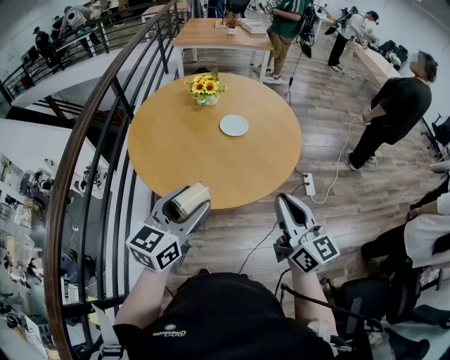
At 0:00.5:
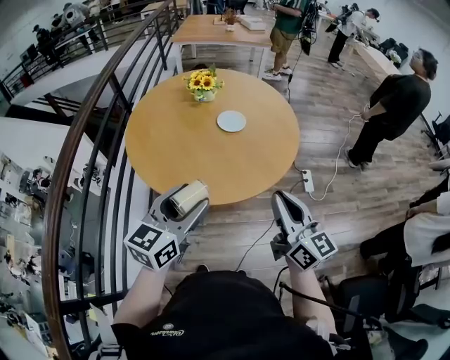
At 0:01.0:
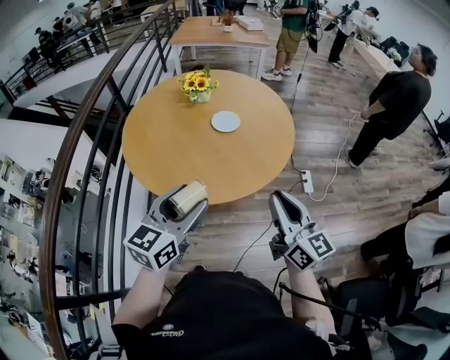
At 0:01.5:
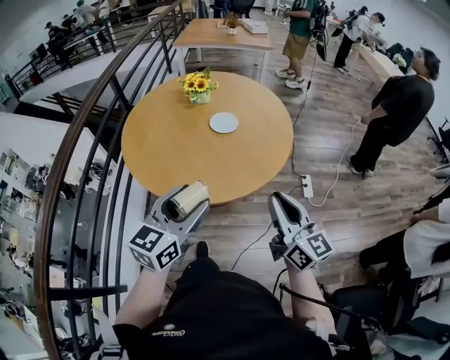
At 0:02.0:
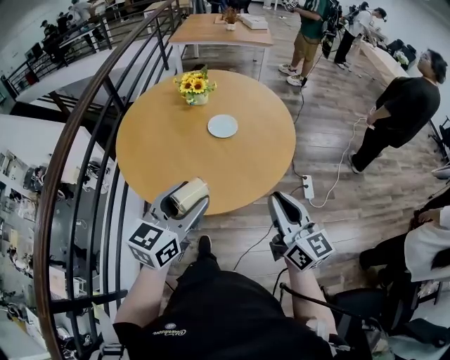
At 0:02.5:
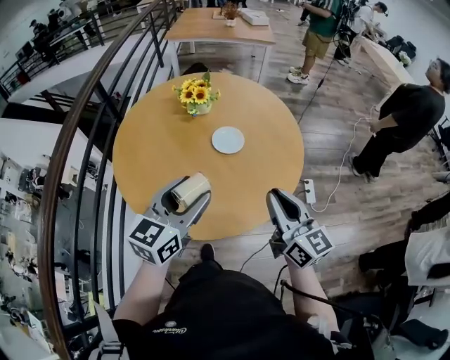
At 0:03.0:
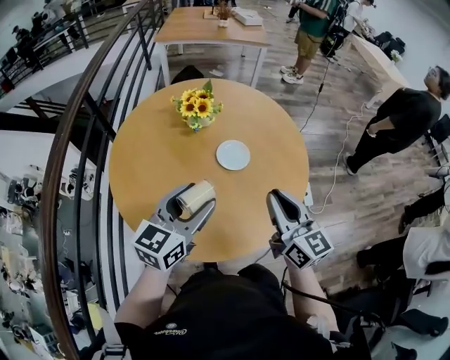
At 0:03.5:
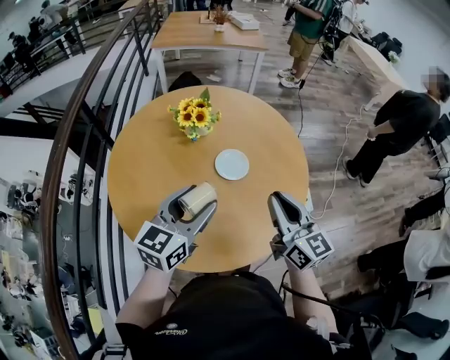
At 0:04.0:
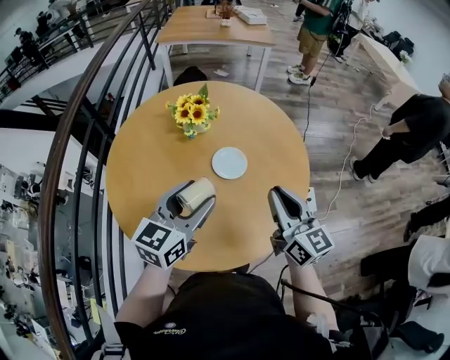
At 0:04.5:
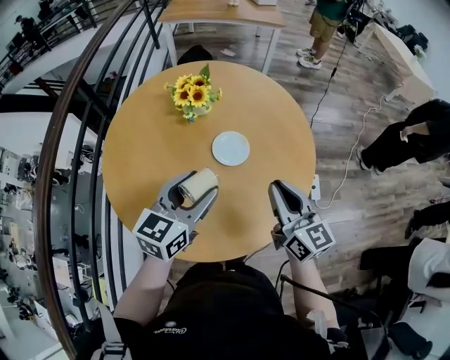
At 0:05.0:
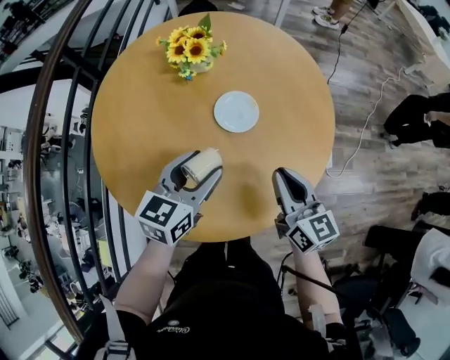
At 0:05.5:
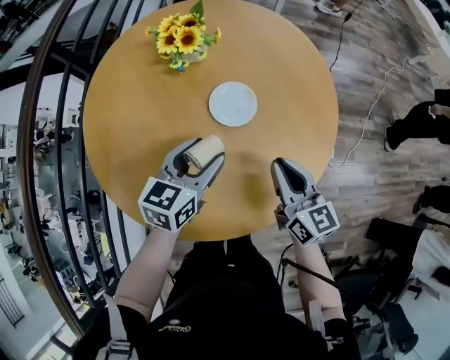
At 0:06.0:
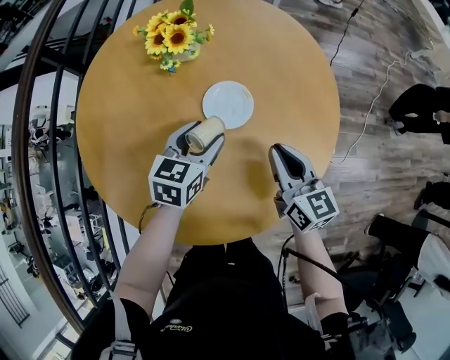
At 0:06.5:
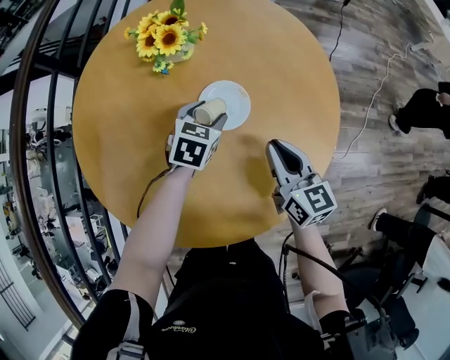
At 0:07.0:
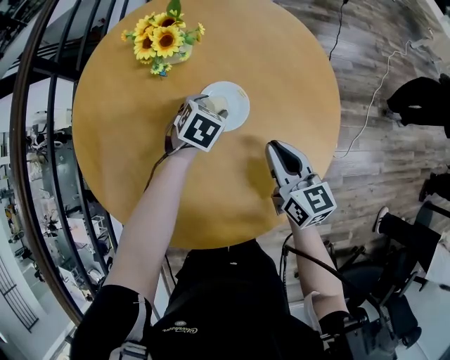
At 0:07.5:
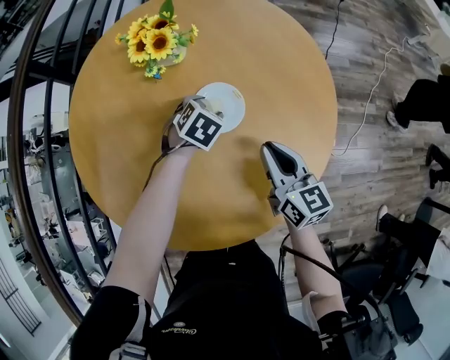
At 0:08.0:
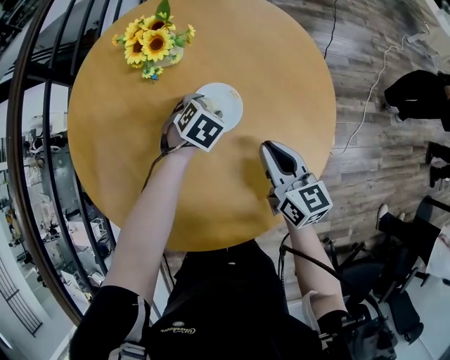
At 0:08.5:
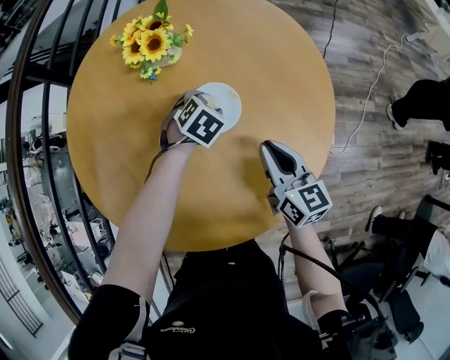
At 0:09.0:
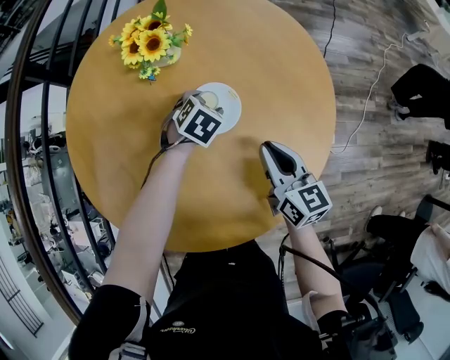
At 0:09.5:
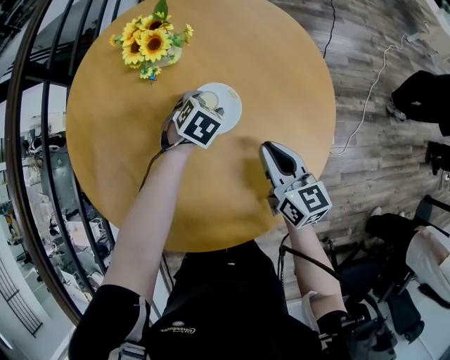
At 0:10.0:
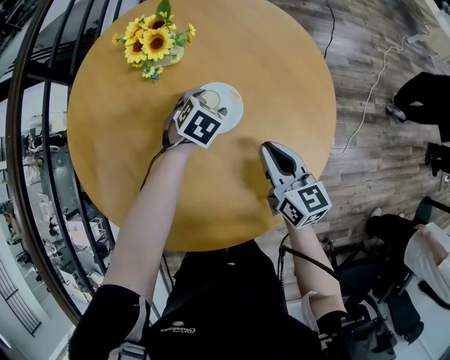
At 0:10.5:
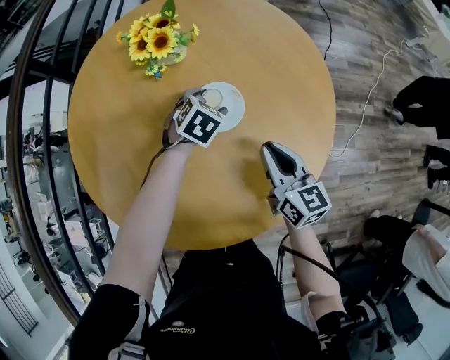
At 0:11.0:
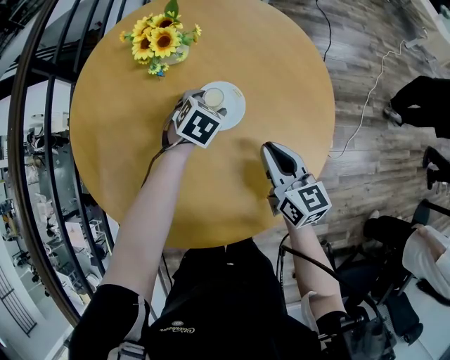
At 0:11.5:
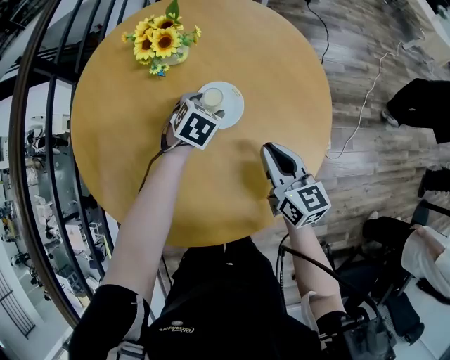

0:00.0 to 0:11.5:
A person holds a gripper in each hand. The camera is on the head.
0:00.0 to 0:02.0: The left gripper heads to the right, covering about 10 cm. The right gripper heads to the right and forward, covering approximately 10 cm.
0:02.0 to 0:04.0: Both grippers travel together forward, about 25 cm.
0:04.0 to 0:06.0: Both grippers move downward and forward, some 20 cm. The left gripper turns by approximately 20 degrees.
0:06.0 to 0:07.5: The left gripper is displaced downward and forward by roughly 15 cm, and tips its fingers downward by approximately 30 degrees.
0:07.5 to 0:11.5: The grippers move only a little.

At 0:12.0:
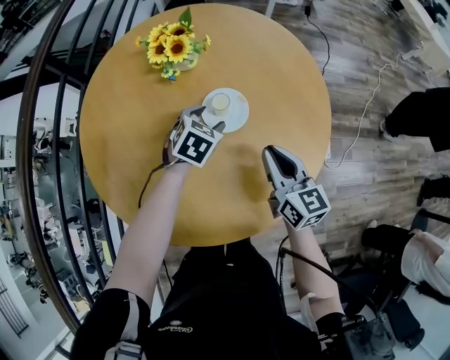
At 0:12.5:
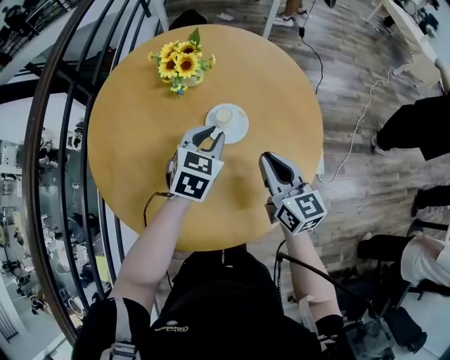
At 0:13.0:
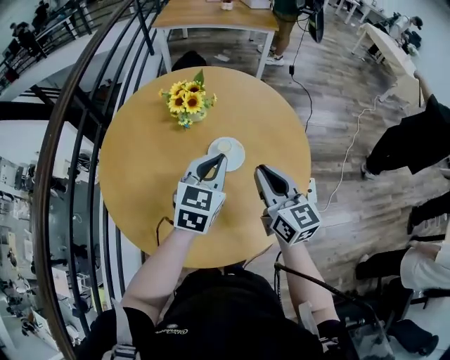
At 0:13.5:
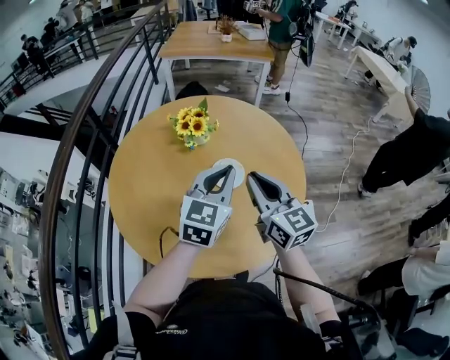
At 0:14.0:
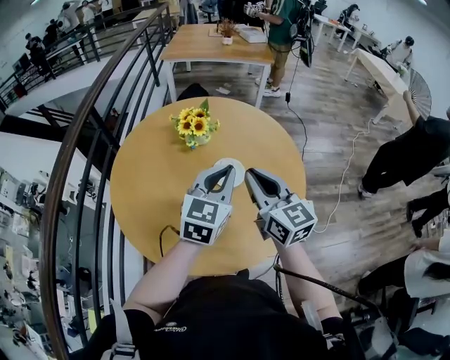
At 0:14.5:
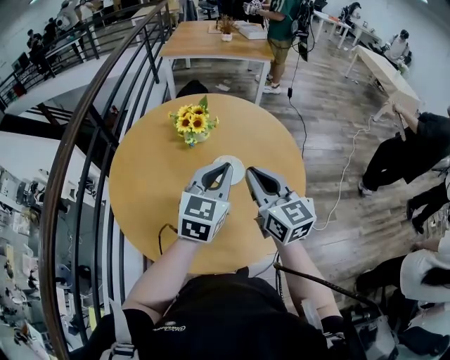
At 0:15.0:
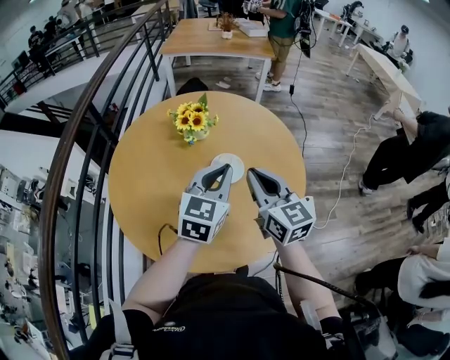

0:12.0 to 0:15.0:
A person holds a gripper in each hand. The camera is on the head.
0:12.0 to 0:13.5: The right gripper heads upward and to the left, covering roughly 20 cm. Meanwhile the left gripper moves upward and backward, about 30 cm, tilts its fingers about 40 degrees upward, and closes its fingers.
0:13.5 to 0:15.0: The grippers make only small movements.

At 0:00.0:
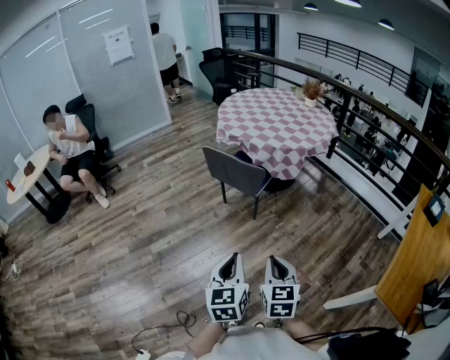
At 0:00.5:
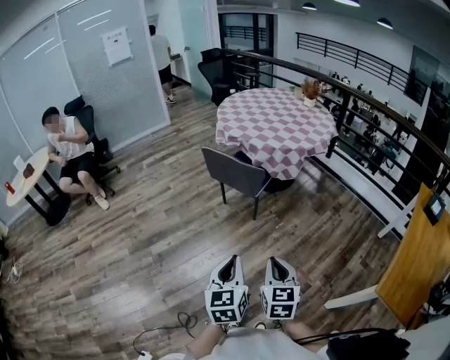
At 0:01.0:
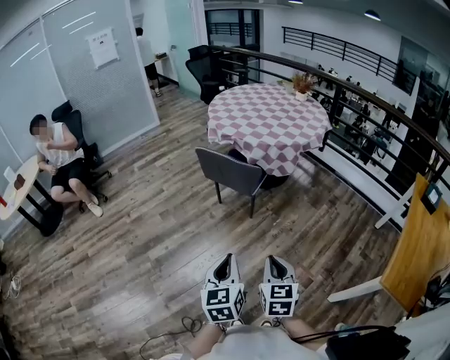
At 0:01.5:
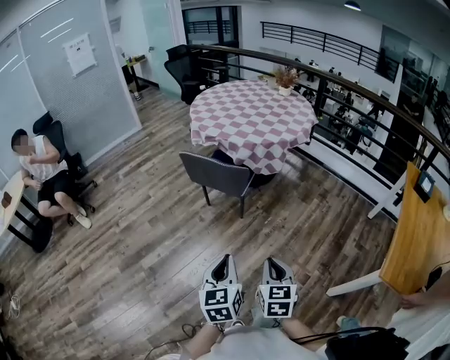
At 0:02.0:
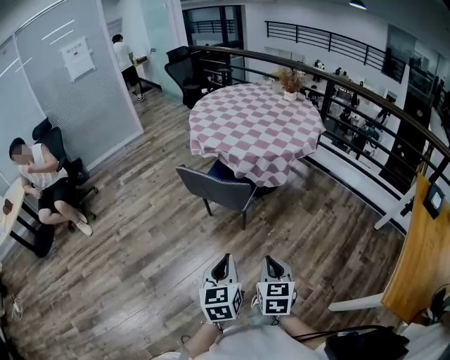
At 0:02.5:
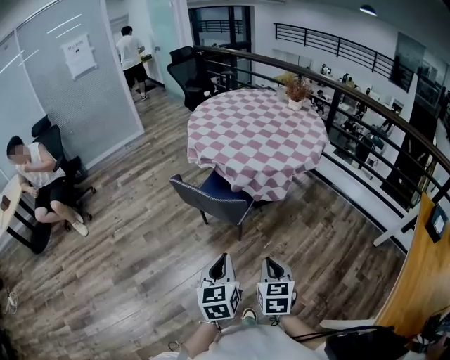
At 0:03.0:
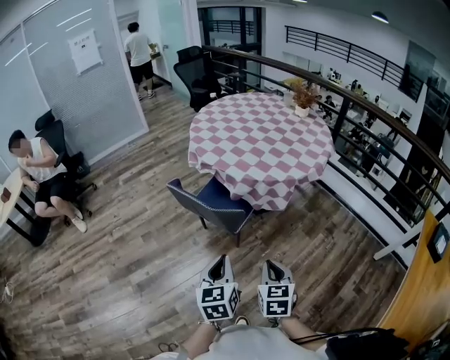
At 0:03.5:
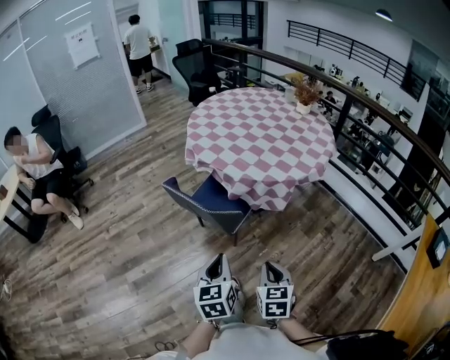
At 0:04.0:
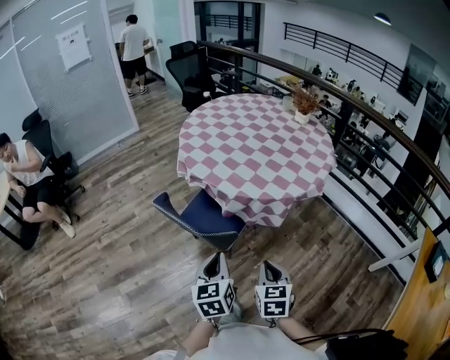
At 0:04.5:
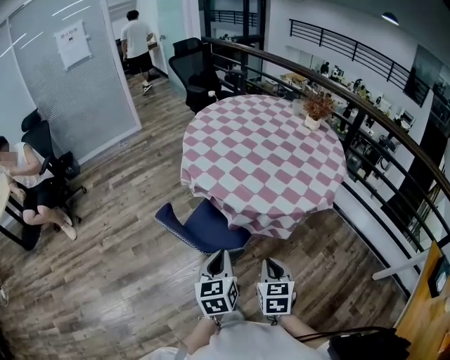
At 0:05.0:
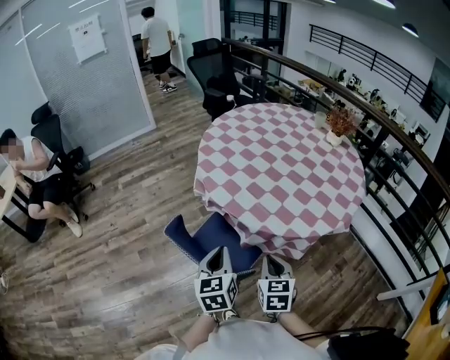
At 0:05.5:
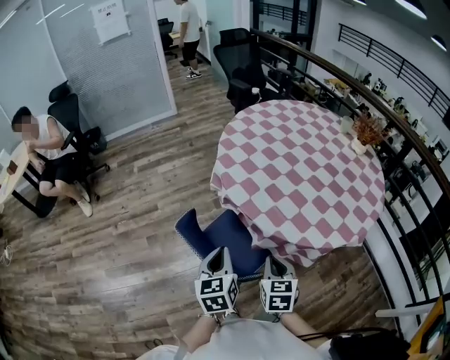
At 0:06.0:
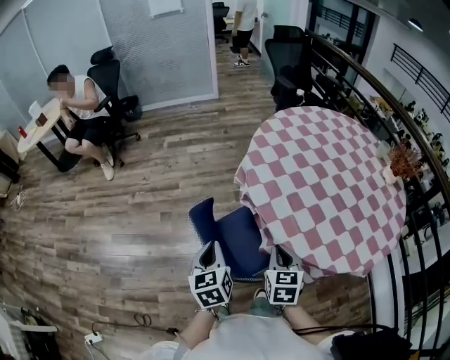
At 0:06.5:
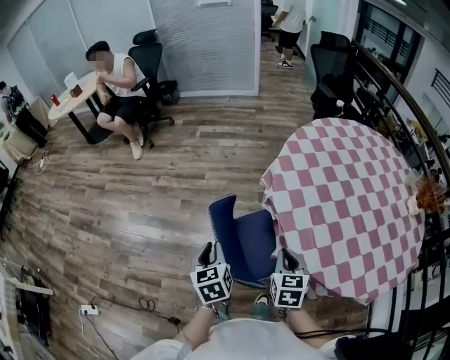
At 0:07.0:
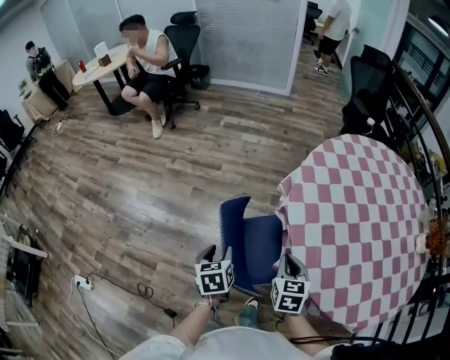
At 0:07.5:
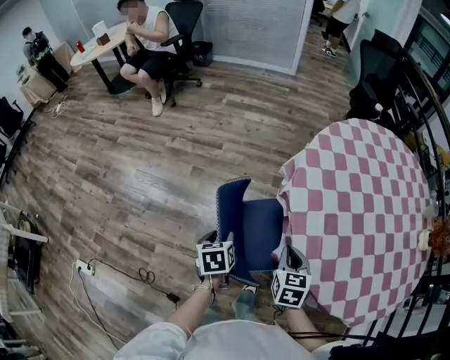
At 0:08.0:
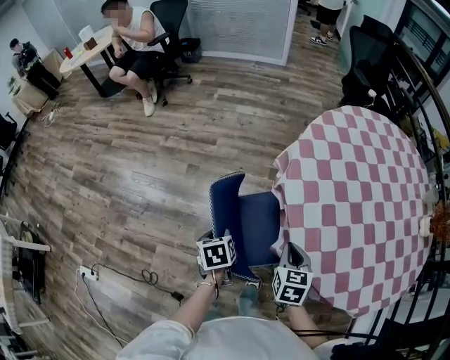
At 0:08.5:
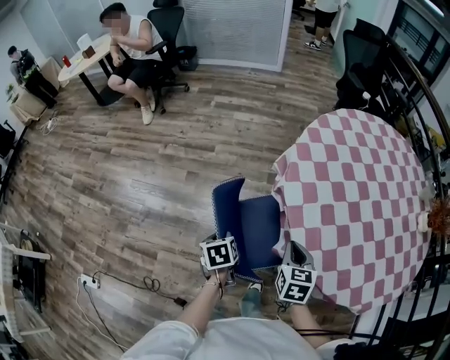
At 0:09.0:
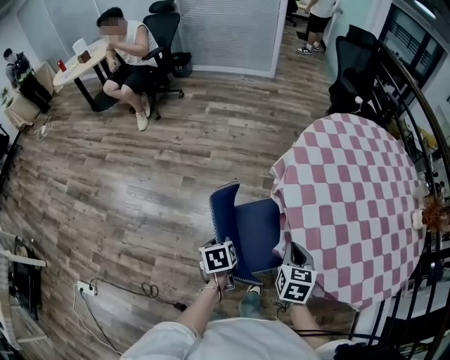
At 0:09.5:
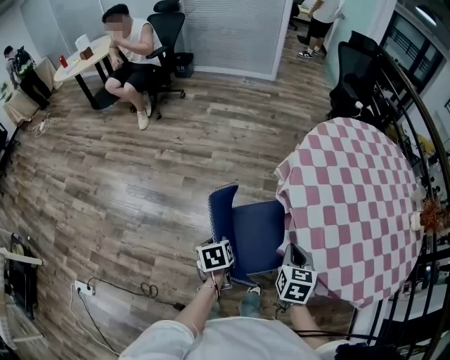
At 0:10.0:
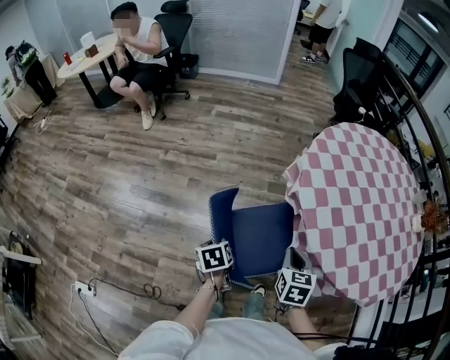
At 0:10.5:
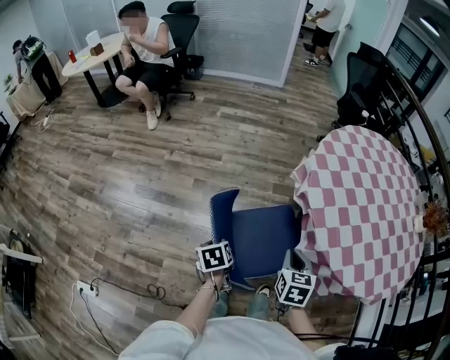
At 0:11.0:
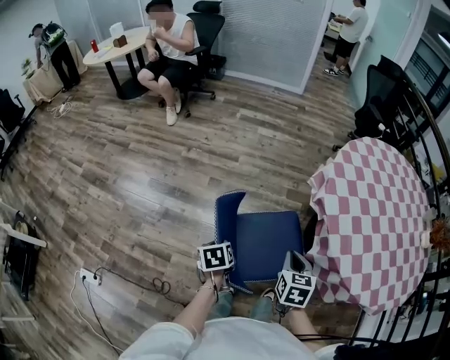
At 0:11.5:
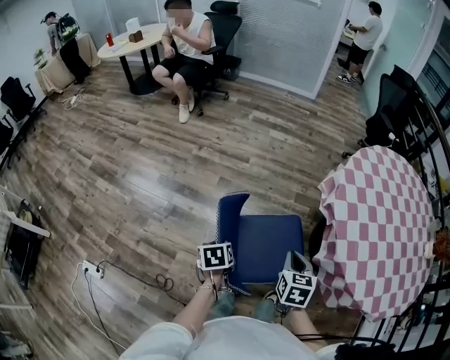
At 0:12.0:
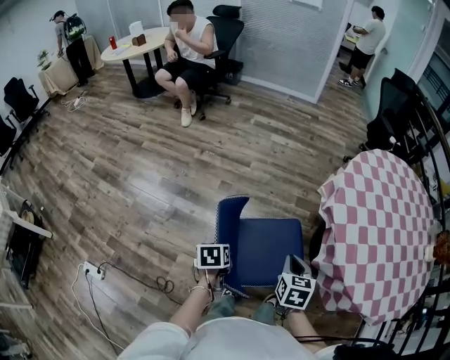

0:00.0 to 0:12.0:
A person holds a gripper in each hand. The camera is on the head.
0:00.0 to 0:02.0: The grippers both shift forward by roughly 15 cm.
0:02.0 to 0:04.0: Both grippers move forward, some 30 cm.
0:04.0 to 0:06.0: The right gripper changes place by approximately 30 cm, and rotates roughly 20 degrees, while the left gripper ends up some 25 cm from where it was, and changes its angle by some 30 degrees.
0:06.0 to 0:08.0: The right gripper heads downward and forward, covering approximately 10 cm, while the left gripper heads downward, covering roughly 15 cm, tilts its fingers approximately 30 degrees downward, and opens.
0:08.0 to 0:10.0: Both grippers travel together to the left, some 10 cm.
0:10.0 to 0:12.0: The left gripper heads to the left and backward, covering roughly 15 cm. The right gripper is displaced to the left by about 10 cm.
